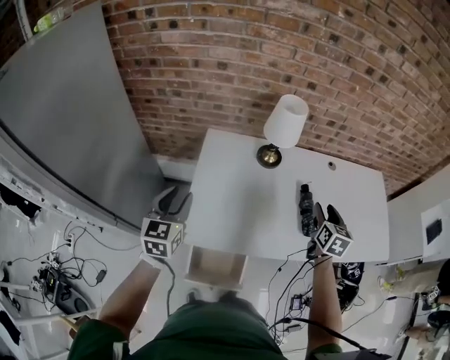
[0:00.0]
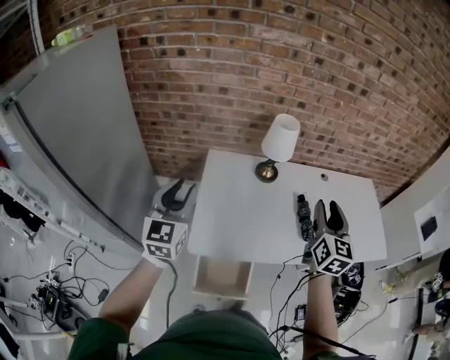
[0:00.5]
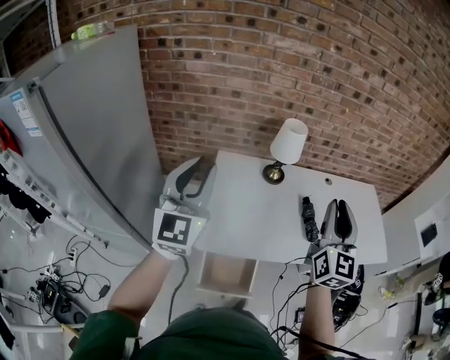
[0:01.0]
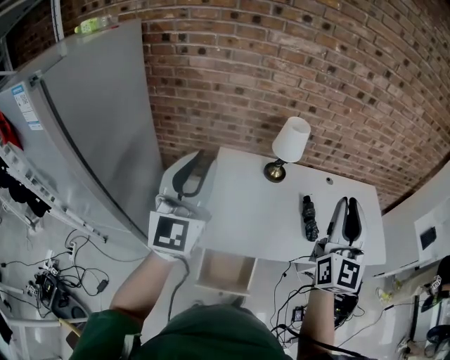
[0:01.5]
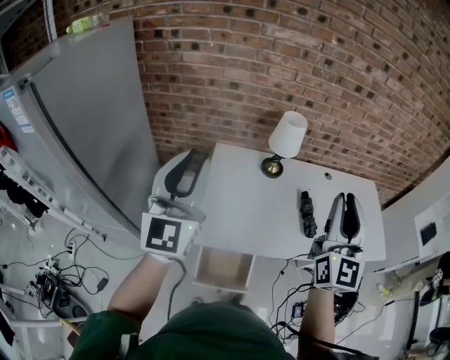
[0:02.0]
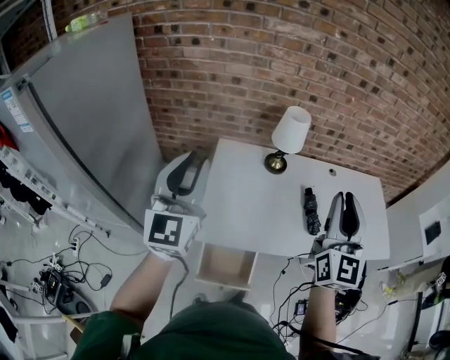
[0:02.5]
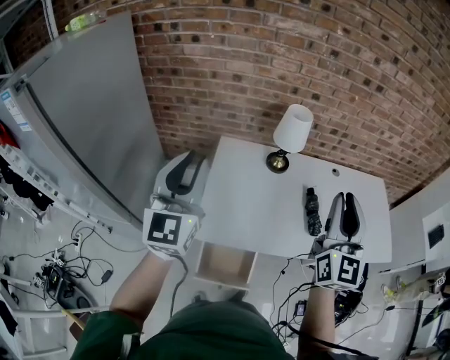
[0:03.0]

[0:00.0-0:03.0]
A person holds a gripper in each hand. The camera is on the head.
0:00.0 to 0:01.5: The right gripper is displaced upward and backward by some 35 cm, tilts its fingers roughly 50 degrees upward, and closes its fingers; the left gripper heads upward, covering approximately 25 cm, and tips its fingers upward by about 40 degrees.
0:01.5 to 0:03.0: The left gripper shifts by roughly 5 cm; the right gripper ends up about 5 cm from where it was.

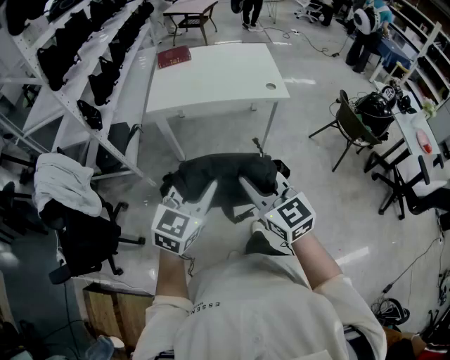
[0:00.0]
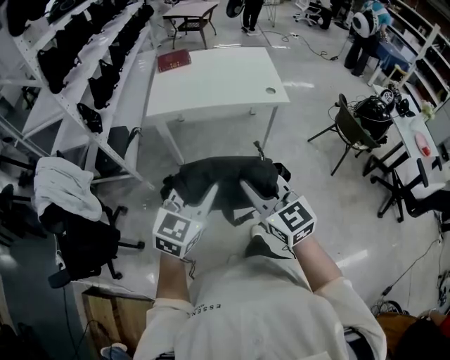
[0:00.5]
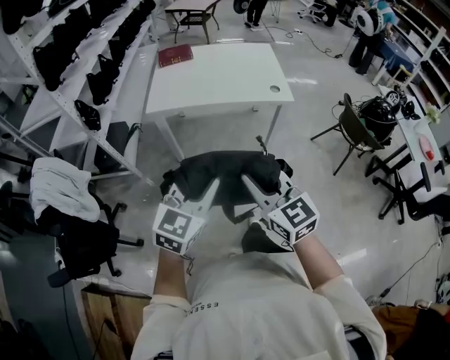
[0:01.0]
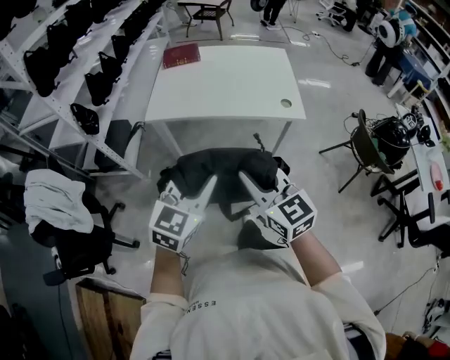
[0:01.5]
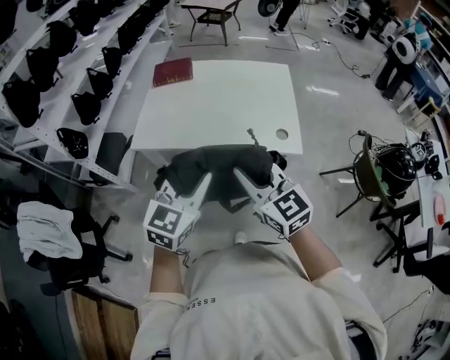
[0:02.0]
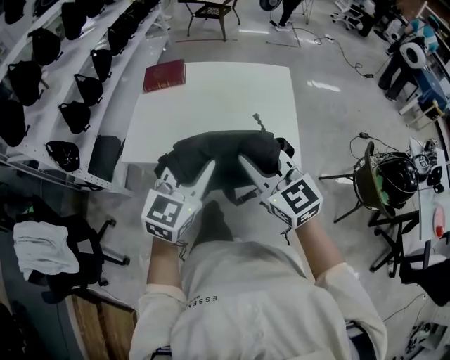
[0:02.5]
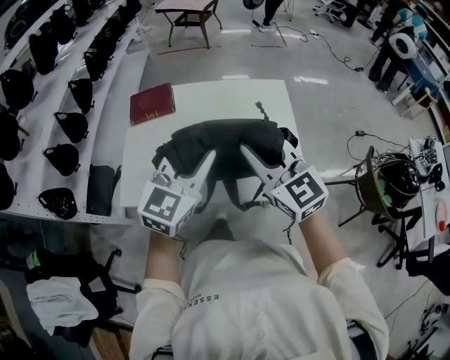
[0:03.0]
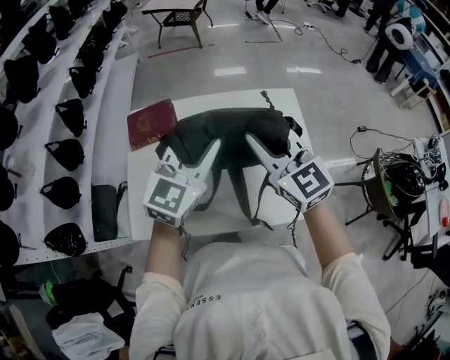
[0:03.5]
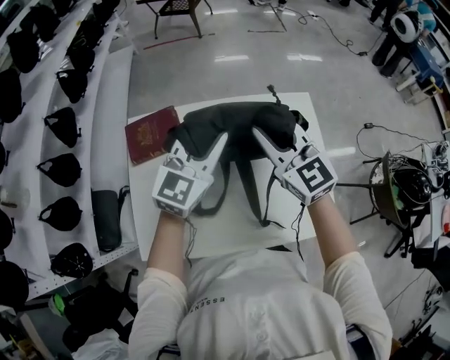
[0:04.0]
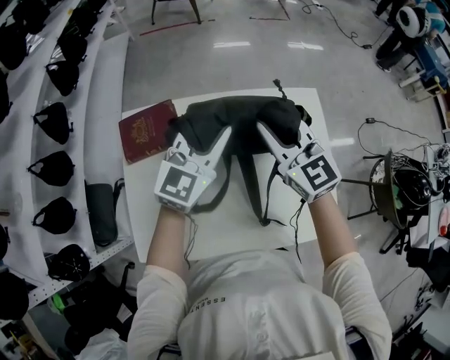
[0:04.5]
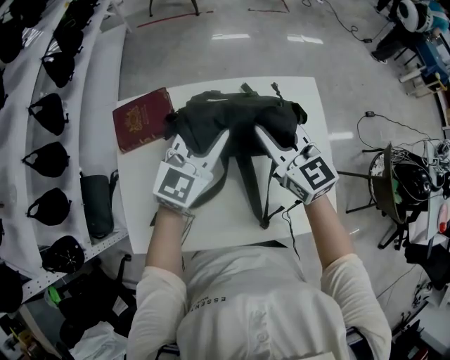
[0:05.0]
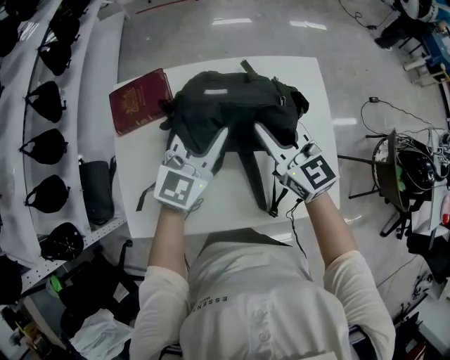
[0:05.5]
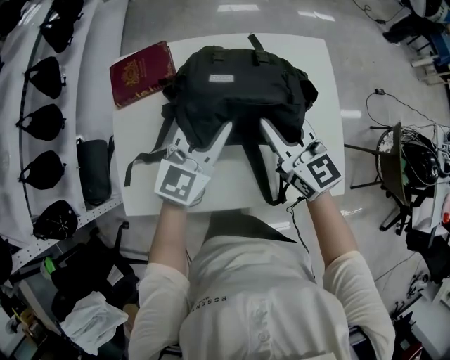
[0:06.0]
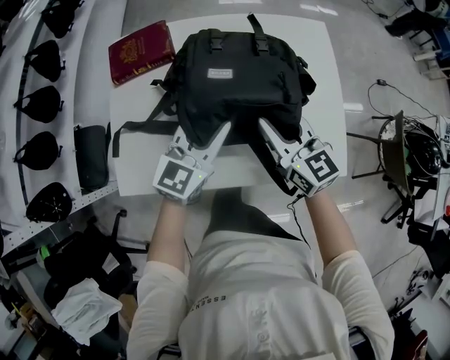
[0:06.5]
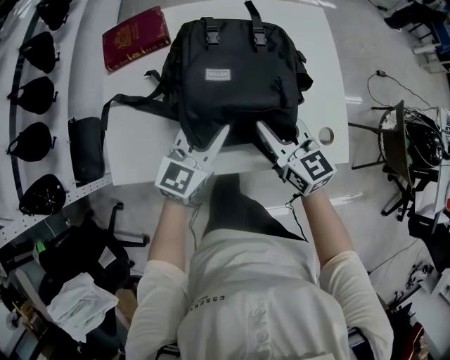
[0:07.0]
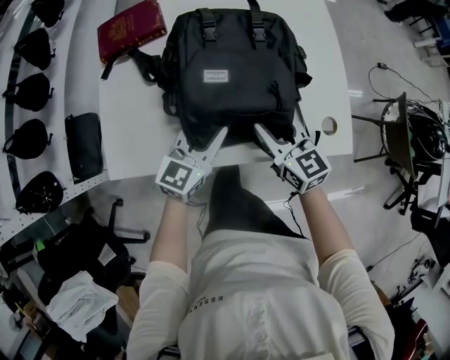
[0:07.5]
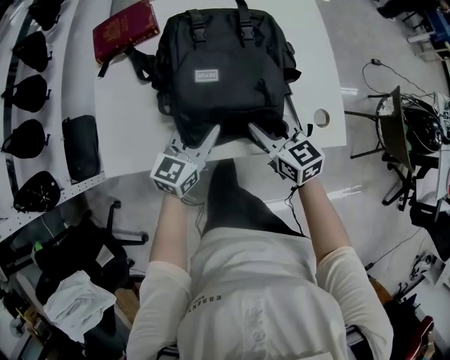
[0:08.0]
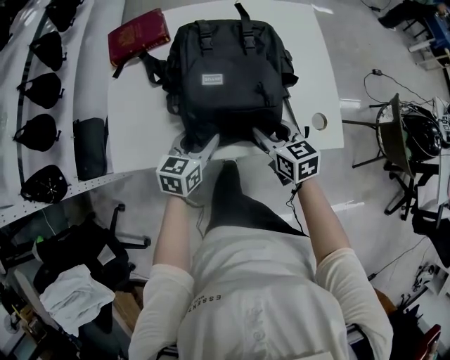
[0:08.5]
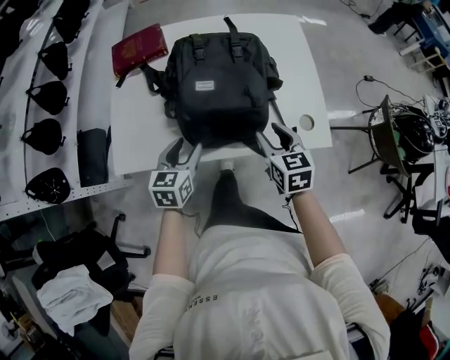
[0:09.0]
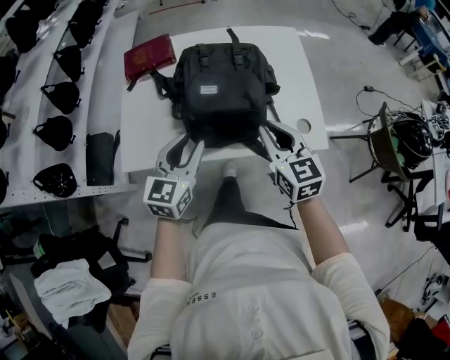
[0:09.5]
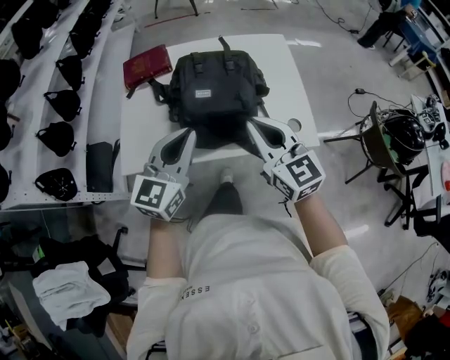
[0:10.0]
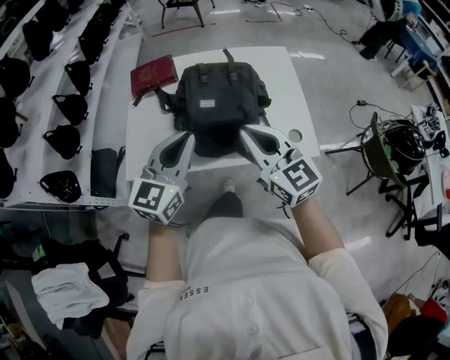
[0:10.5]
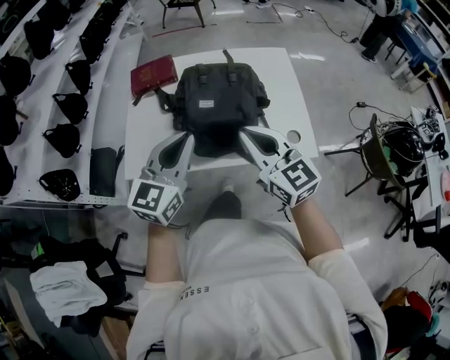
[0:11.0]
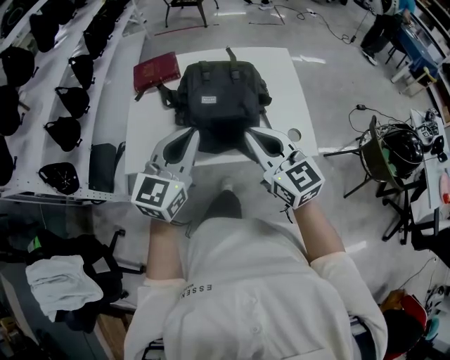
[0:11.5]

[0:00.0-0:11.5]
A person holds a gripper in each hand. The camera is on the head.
0:00.0 to 0:02.0: The two grippers go about 35 cm forward.
0:02.0 to 0:04.0: The pair of grippers is taken forward, about 50 cm.
0:04.0 to 0:06.0: Both grippers travel together downward and backward, about 15 cm.
0:06.0 to 0:07.5: The grippers both shift backward and downward by some 20 cm.
0:07.5 to 0:09.5: Both grippers move upward and backward, approximately 15 cm. The right gripper closes up.
0:09.5 to 0:11.5: The right gripper travels upward and backward by about 10 cm. Meanwhile the left gripper is displaced upward by roughly 10 cm, and closes.

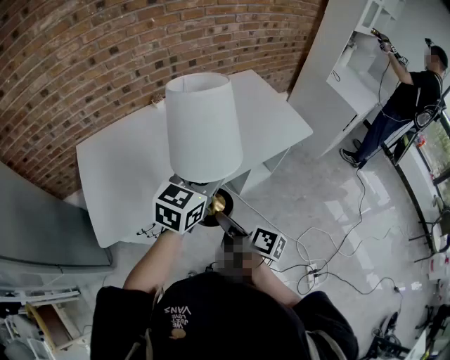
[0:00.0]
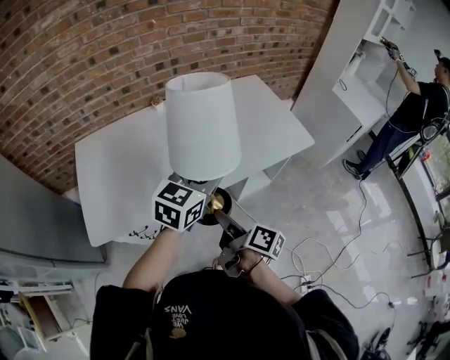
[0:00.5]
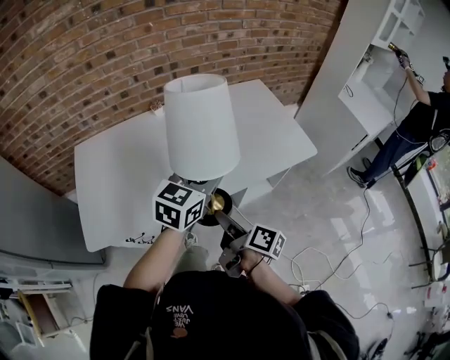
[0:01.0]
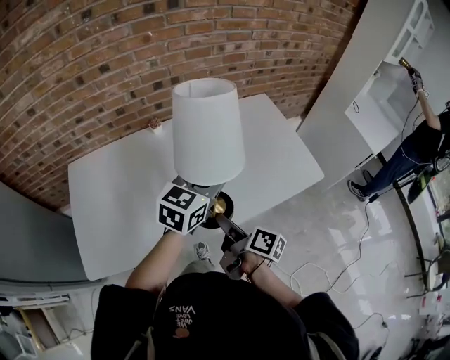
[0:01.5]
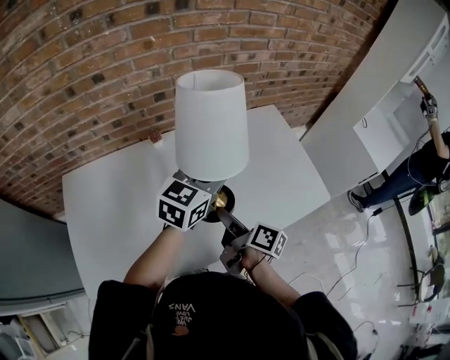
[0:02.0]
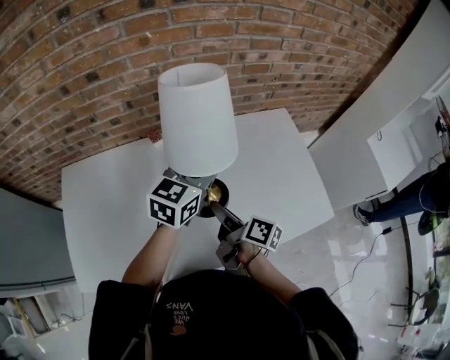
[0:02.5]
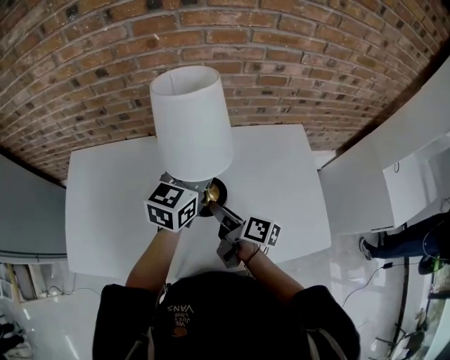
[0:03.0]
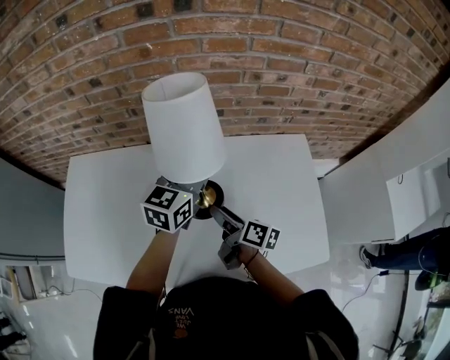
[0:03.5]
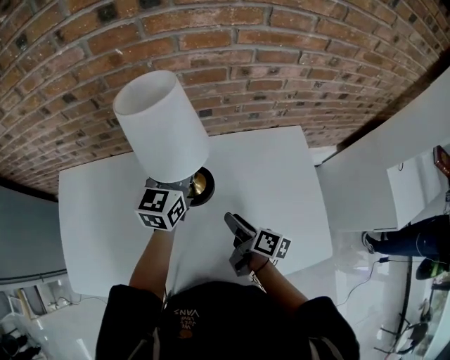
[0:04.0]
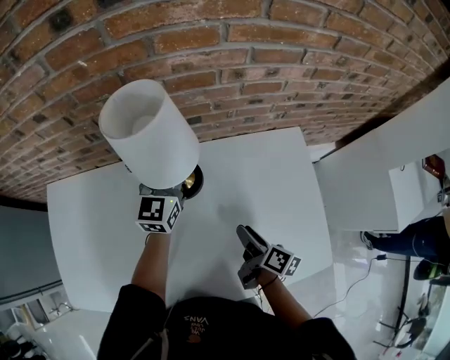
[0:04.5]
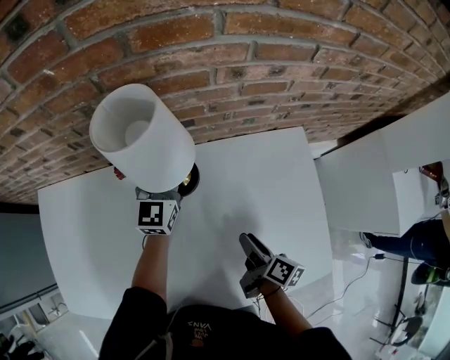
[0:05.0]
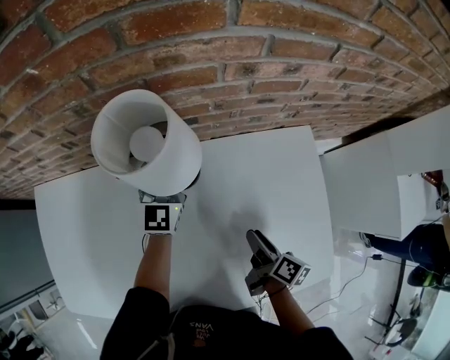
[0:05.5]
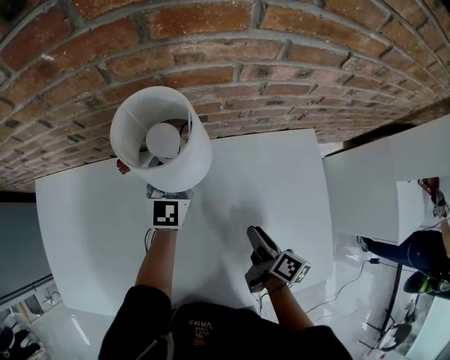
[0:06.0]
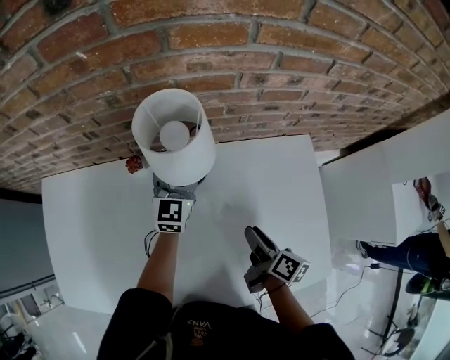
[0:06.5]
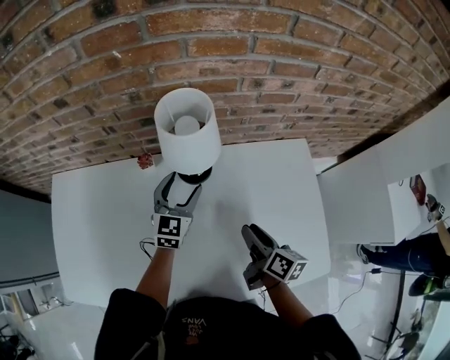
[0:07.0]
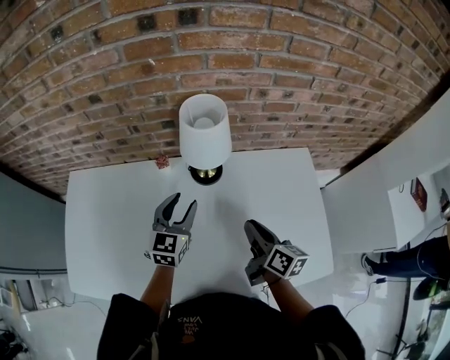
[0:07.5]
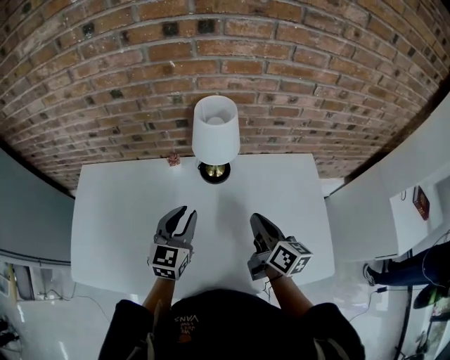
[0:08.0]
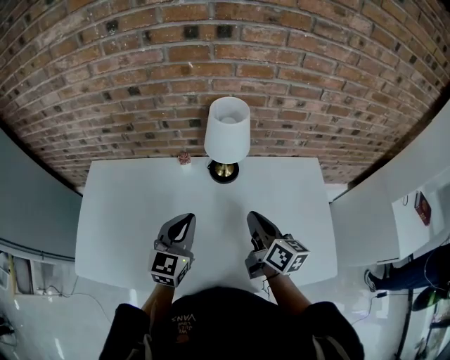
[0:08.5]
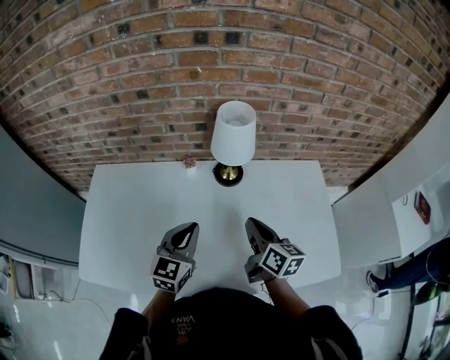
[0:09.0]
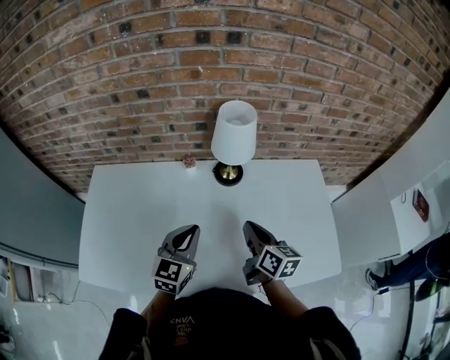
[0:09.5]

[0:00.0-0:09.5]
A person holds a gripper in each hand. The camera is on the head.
0:00.0 to 0:02.0: Both grippers move forward, approximately 30 cm.
0:02.0 to 0:04.0: The left gripper heads forward, covering approximately 20 cm, and rotates some 30 degrees; the right gripper shifts about 20 cm forward, to the right and downward.
0:04.0 to 0:05.5: The left gripper shifts approximately 15 cm forward and downward; the right gripper shifts approximately 10 cm to the right and downward.
0:05.5 to 0:07.5: The right gripper is displaced upward and to the left by roughly 15 cm, turns by about 30 degrees, and closes up, while the left gripper is displaced backward and to the left by roughly 20 cm.
0:07.5 to 0:09.5: The left gripper goes approximately 15 cm backward and to the left, and closes. Meanwhile the right gripper is displaced to the left by about 10 cm.

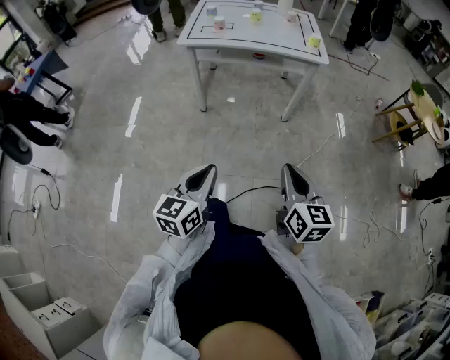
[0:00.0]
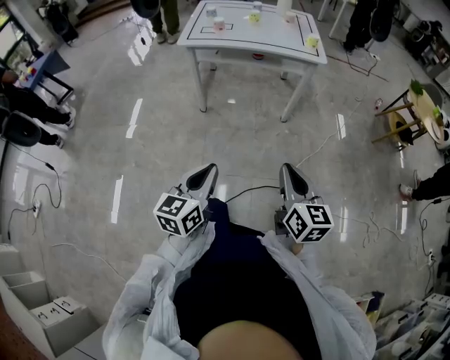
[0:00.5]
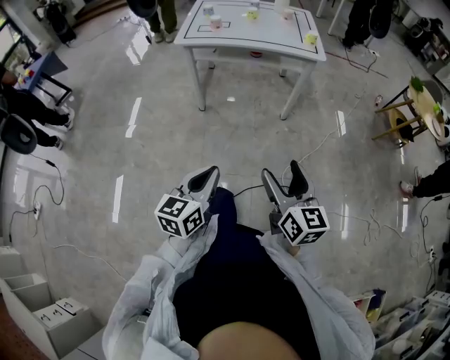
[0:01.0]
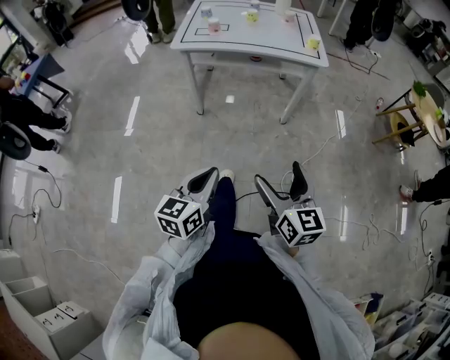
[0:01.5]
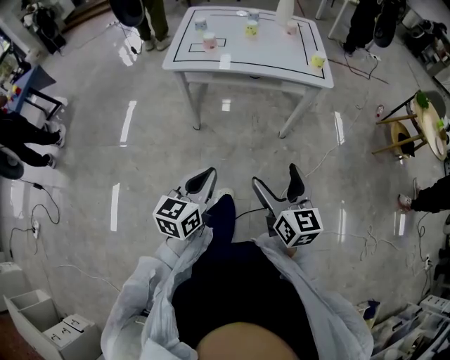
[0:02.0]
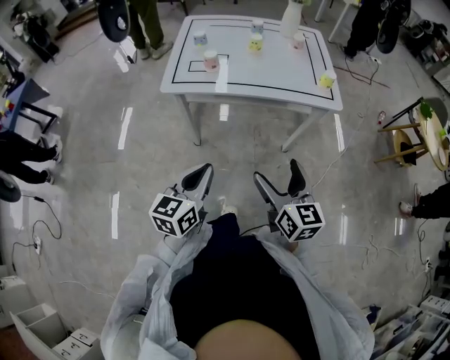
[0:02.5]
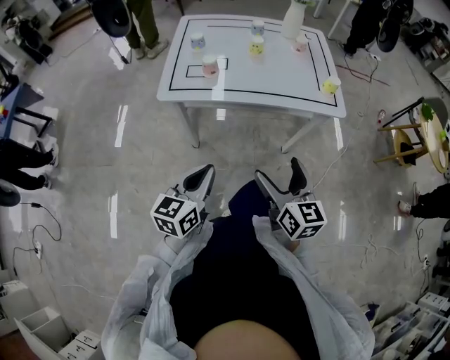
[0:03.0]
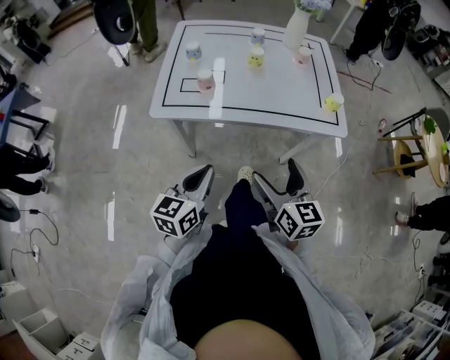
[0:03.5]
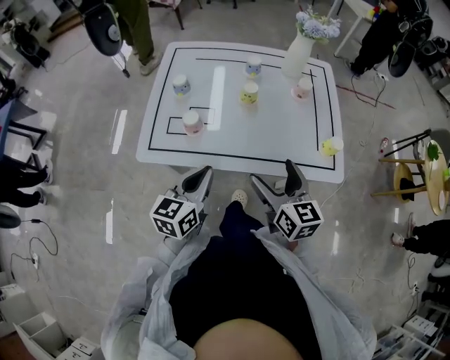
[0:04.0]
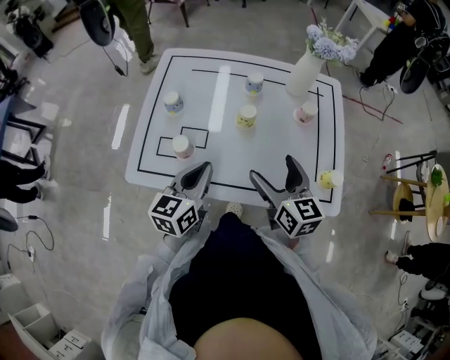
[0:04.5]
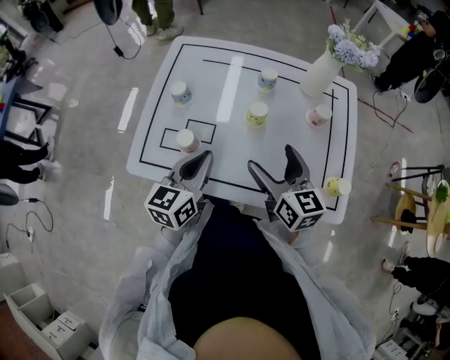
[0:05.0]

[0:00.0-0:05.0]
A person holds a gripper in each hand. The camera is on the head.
0:00.0 to 0:02.5: The two grippers go roughly 35 cm forward. The right gripper opens up.
0:02.5 to 0:05.0: Both grippers are carried forward, roughly 50 cm.
